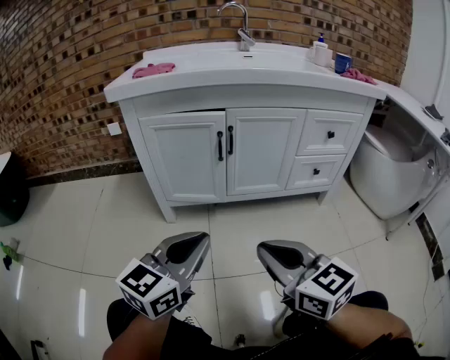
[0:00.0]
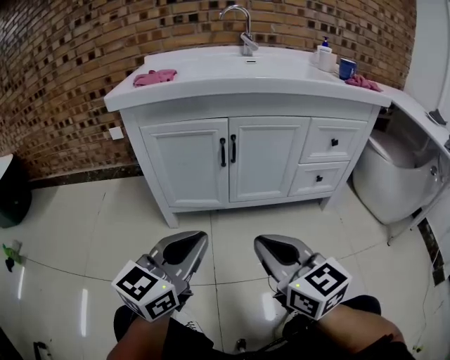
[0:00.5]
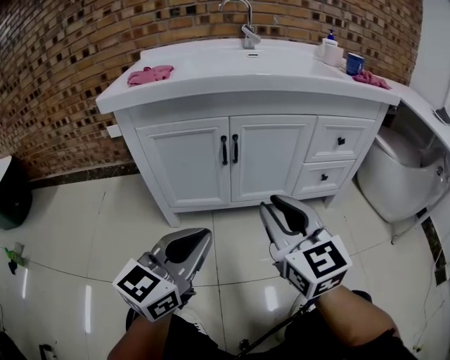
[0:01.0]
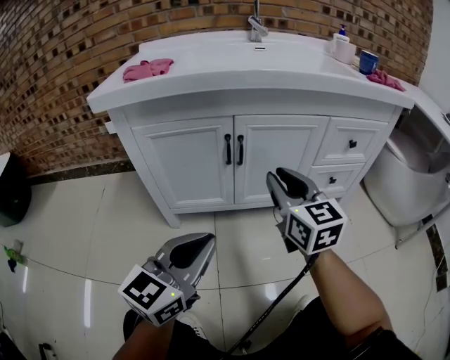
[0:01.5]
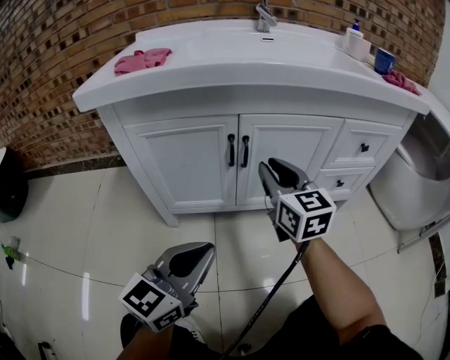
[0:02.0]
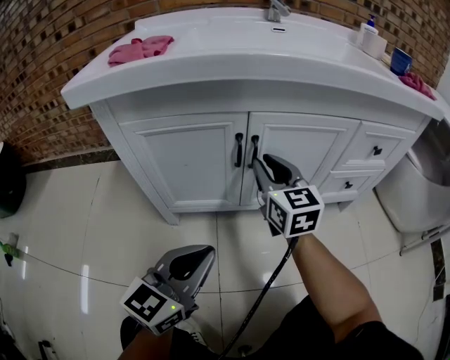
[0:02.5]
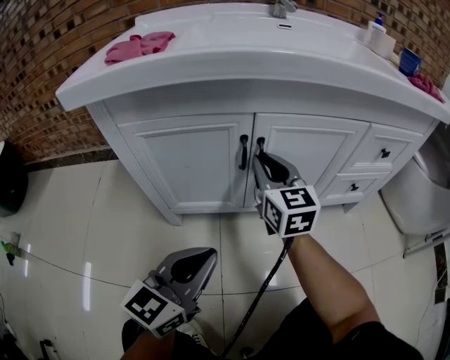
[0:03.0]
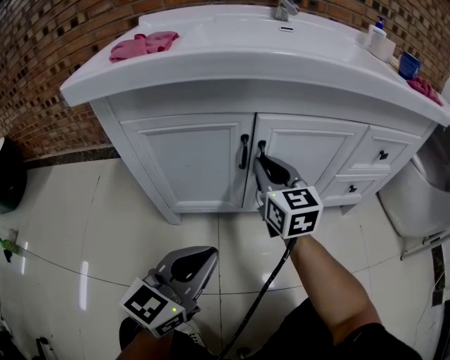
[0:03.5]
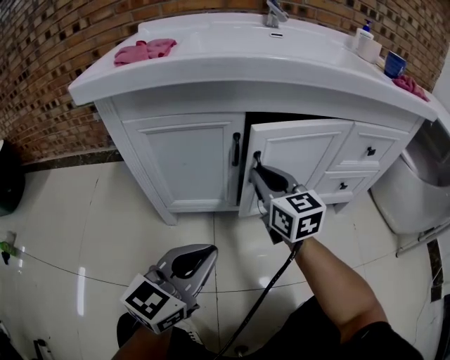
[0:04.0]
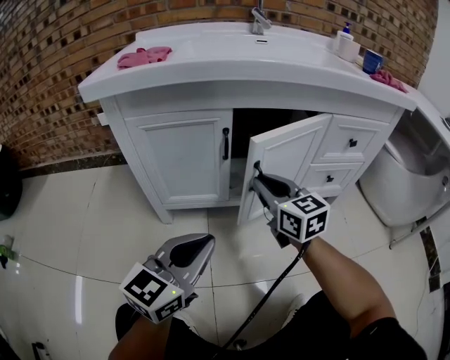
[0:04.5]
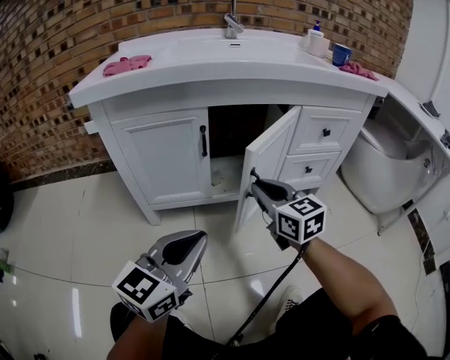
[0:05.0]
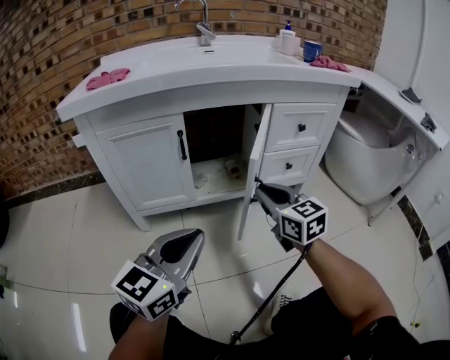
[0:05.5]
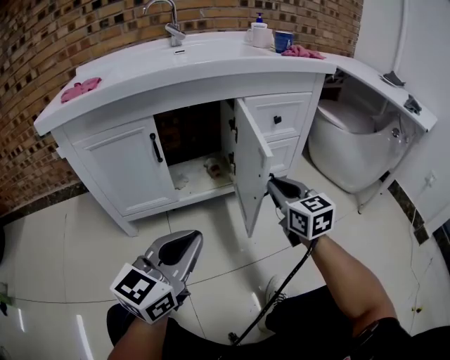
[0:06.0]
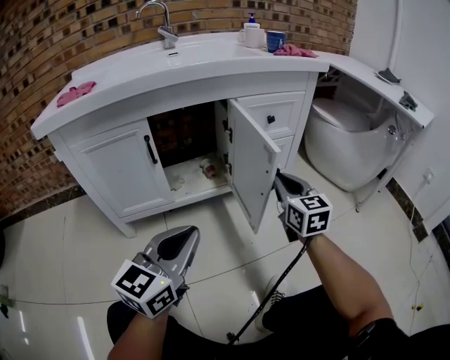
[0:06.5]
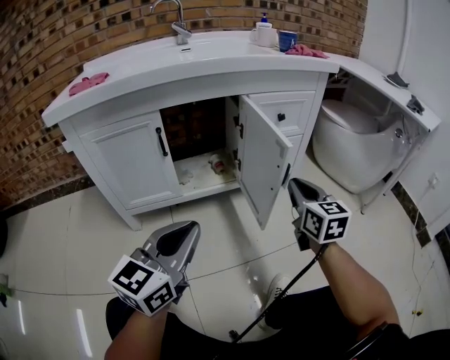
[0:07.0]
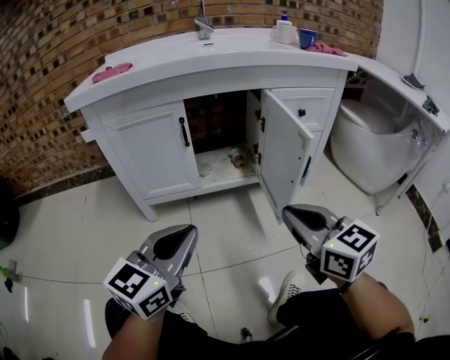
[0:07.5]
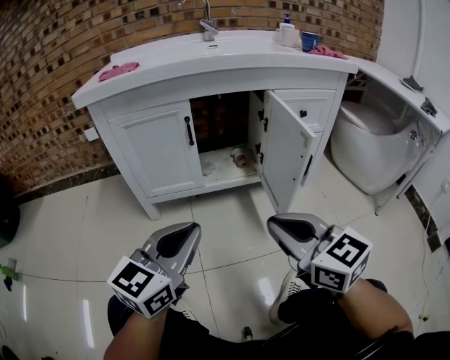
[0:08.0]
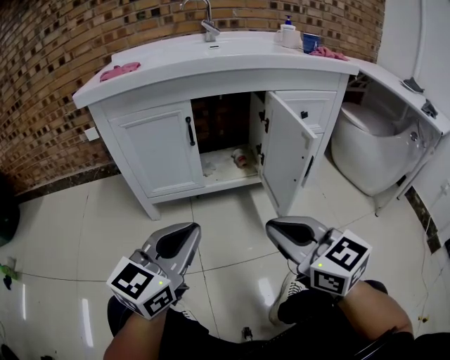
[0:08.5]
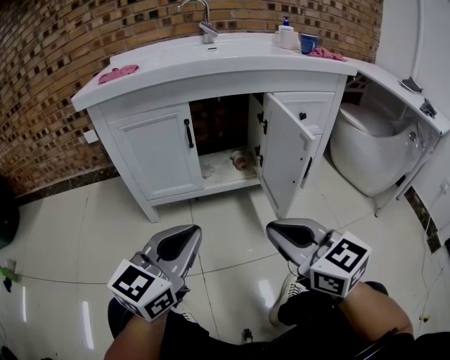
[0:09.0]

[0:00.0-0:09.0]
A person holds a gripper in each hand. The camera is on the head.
0:00.0 to 0:02.0: The left gripper shifts roughly 10 cm forward. Meanwhile the right gripper is displaced forward by roughly 35 cm, and opens.
0:02.0 to 0:04.5: The right gripper moves about 5 cm.
0:04.5 to 0:07.0: The left gripper moves to the right, roughly 10 cm; the right gripper travels to the right by about 30 cm, and rotates about 30 degrees.
0:07.0 to 0:09.0: The right gripper shifts some 25 cm to the left and backward, and changes its angle by approximately 30 degrees. The left gripper travels to the left by about 5 cm.

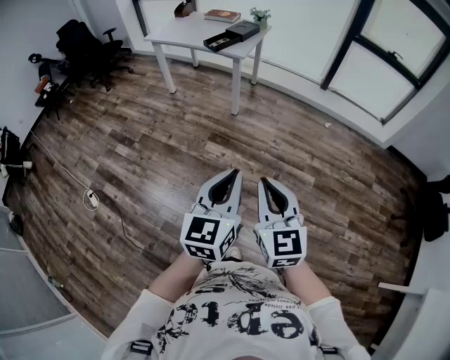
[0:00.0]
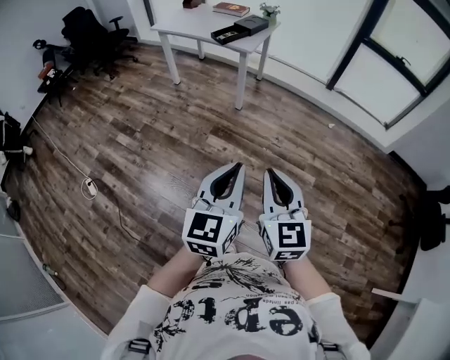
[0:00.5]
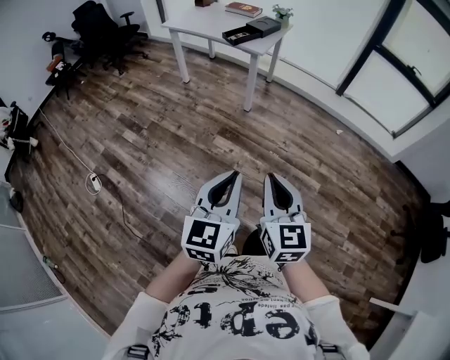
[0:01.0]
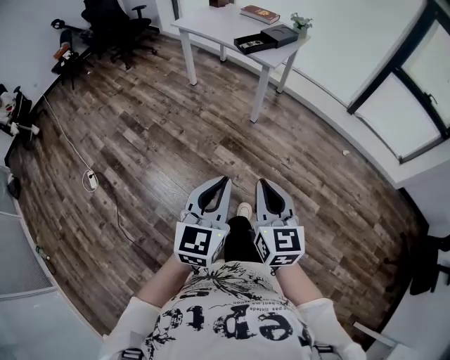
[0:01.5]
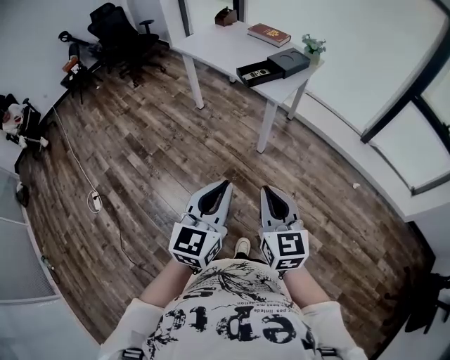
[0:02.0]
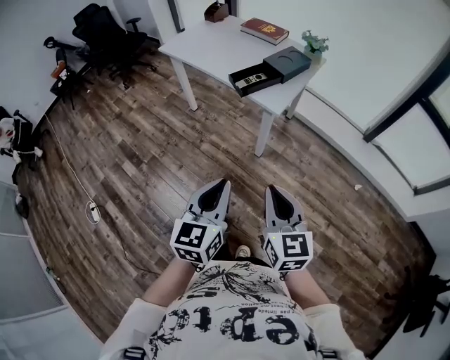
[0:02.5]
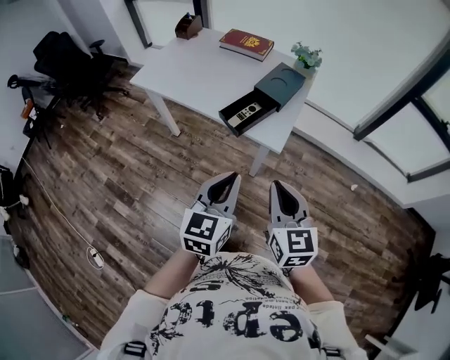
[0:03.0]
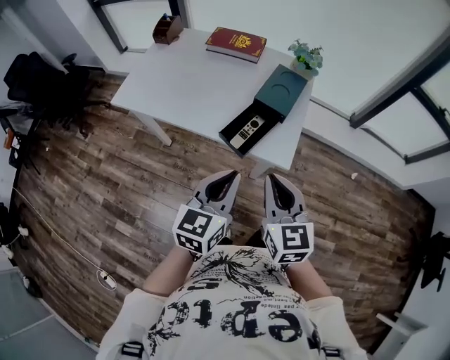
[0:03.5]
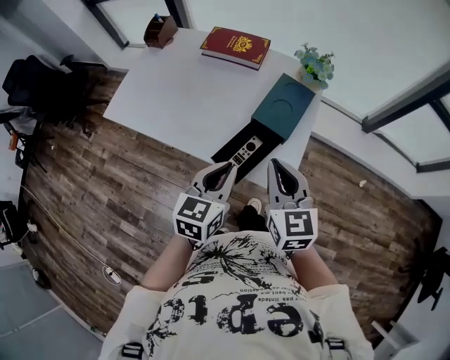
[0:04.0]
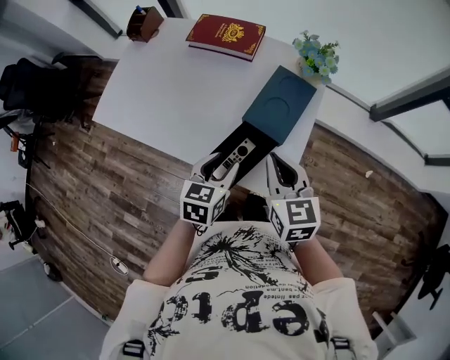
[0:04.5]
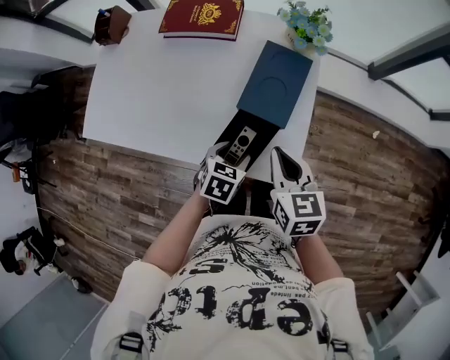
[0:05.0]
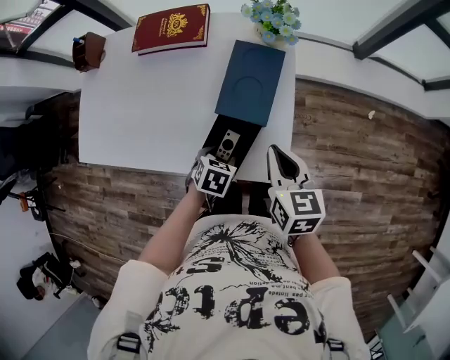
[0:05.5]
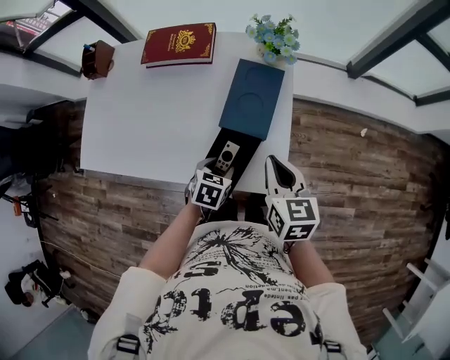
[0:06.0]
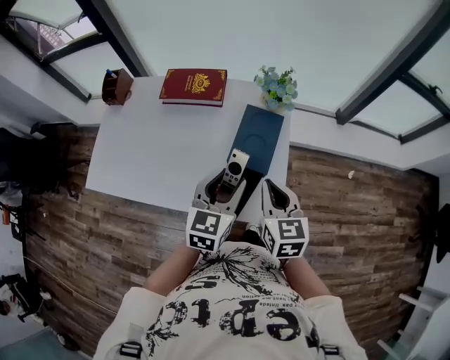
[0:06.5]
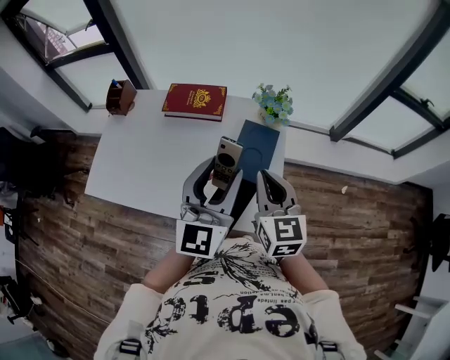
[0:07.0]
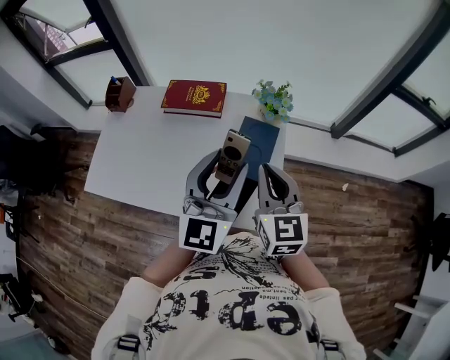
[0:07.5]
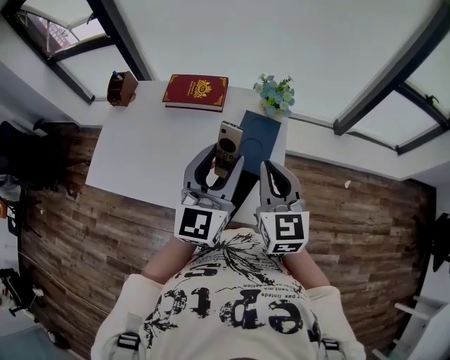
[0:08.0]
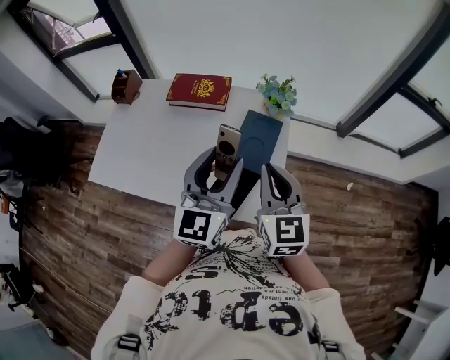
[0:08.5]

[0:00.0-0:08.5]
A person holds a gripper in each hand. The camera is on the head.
0:00.0 to 0:02.0: The grippers both shift forward by about 40 cm.
0:02.0 to 0:04.0: The two grippers travel together, forward, roughly 60 cm. The left gripper turns by some 30 degrees.
0:04.0 to 0:06.5: The left gripper shifts approximately 10 cm forward, moves about 25 cm downward and comes back, and opens its fingers; the right gripper heads forward, covering roughly 10 cm, and reaches approximately 10 cm downward, then returns.
0:06.5 to 0:08.5: The two grippers go about 10 cm upward. The left gripper swivels about 30 degrees.

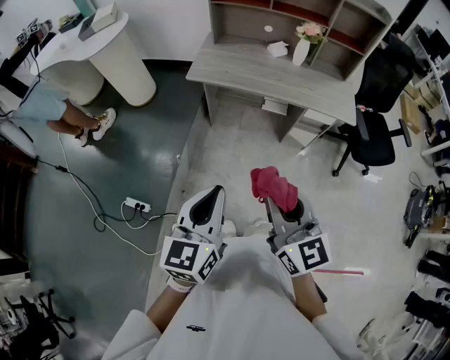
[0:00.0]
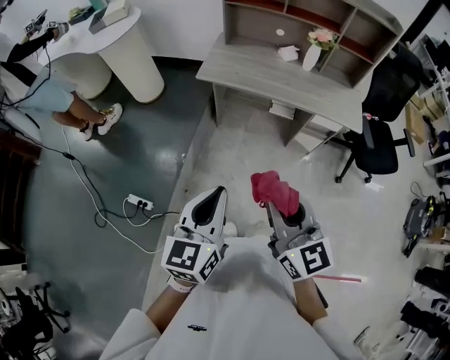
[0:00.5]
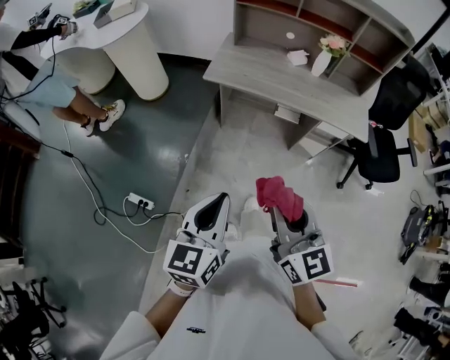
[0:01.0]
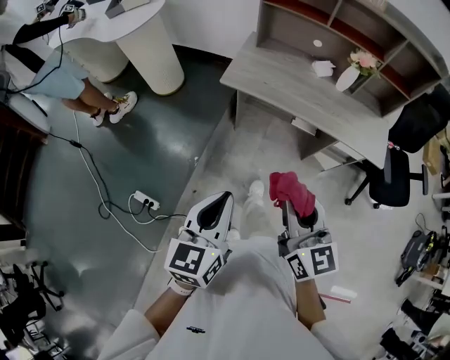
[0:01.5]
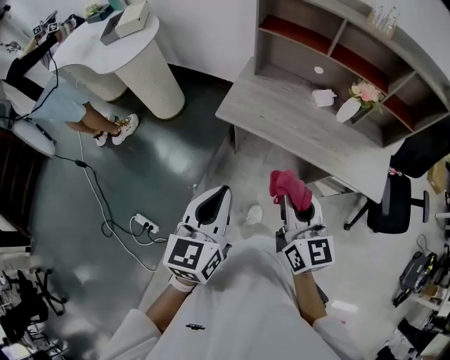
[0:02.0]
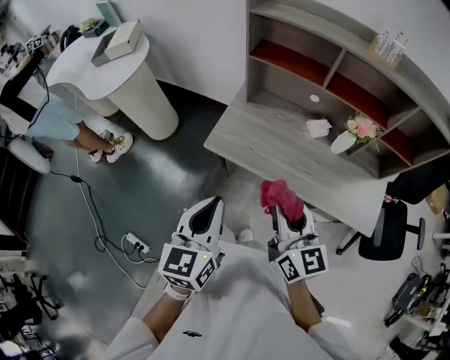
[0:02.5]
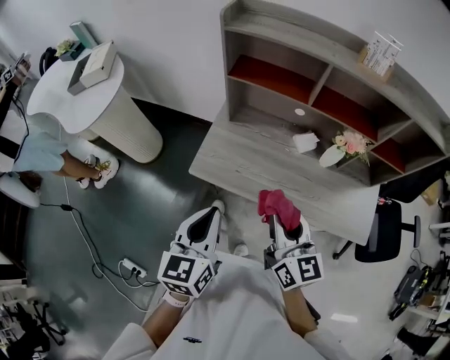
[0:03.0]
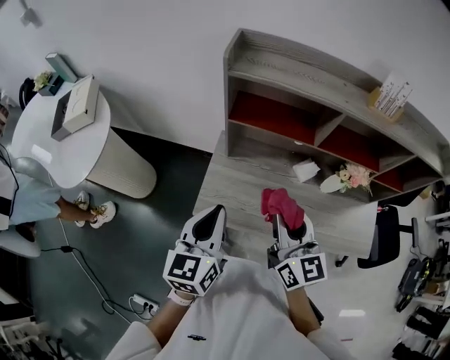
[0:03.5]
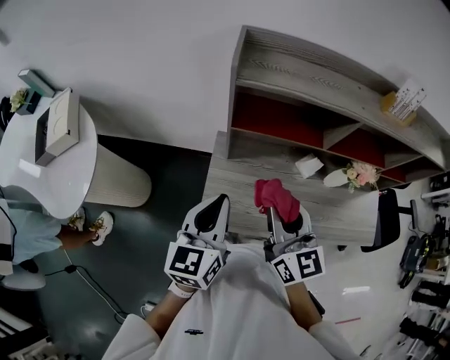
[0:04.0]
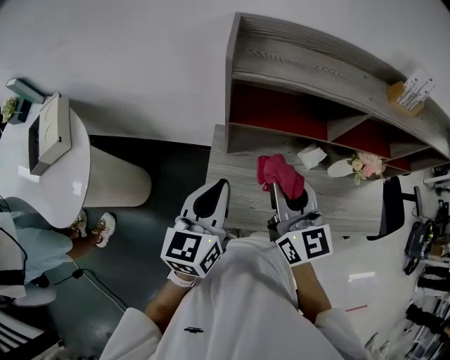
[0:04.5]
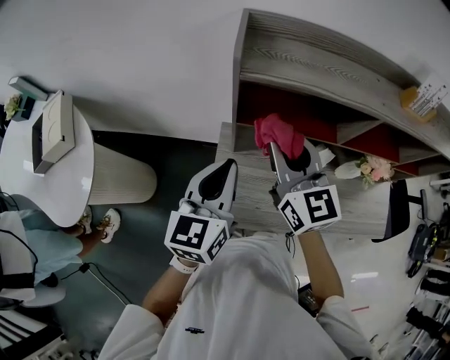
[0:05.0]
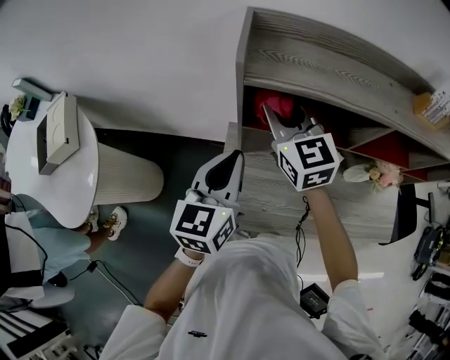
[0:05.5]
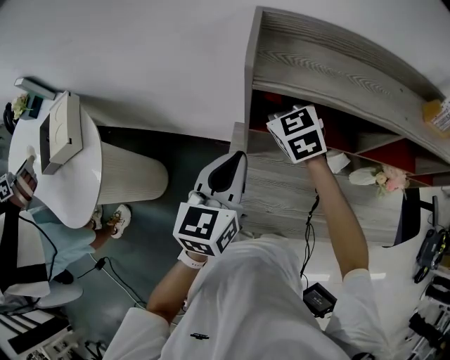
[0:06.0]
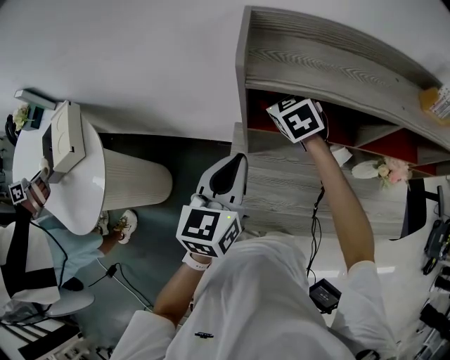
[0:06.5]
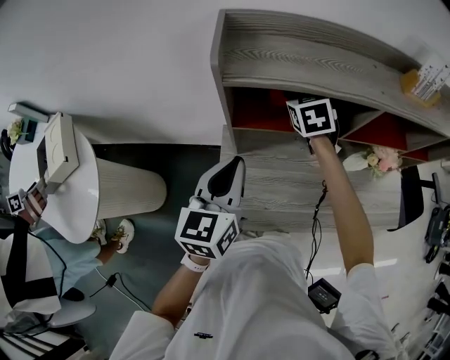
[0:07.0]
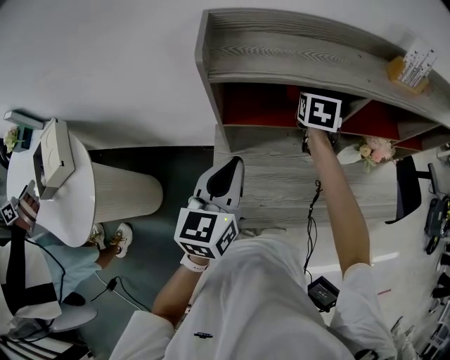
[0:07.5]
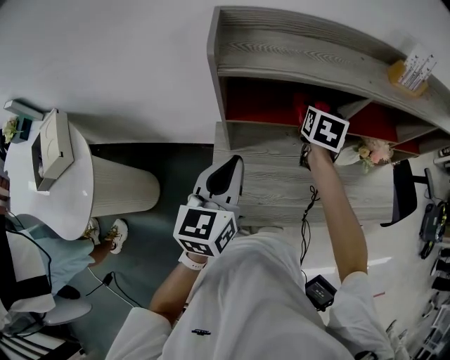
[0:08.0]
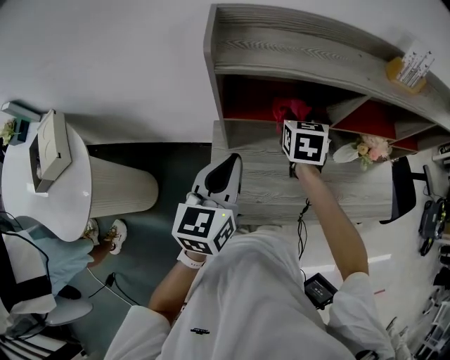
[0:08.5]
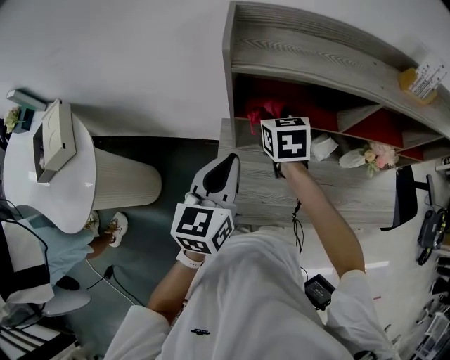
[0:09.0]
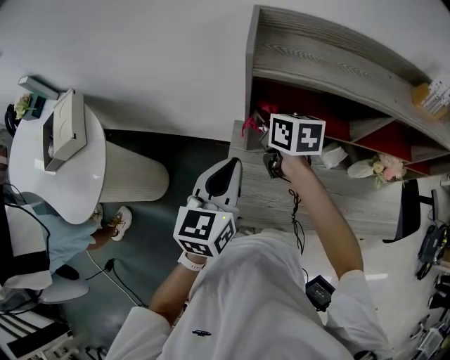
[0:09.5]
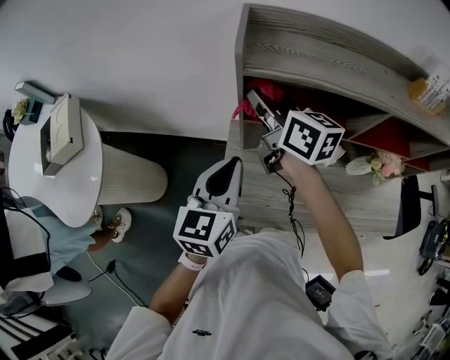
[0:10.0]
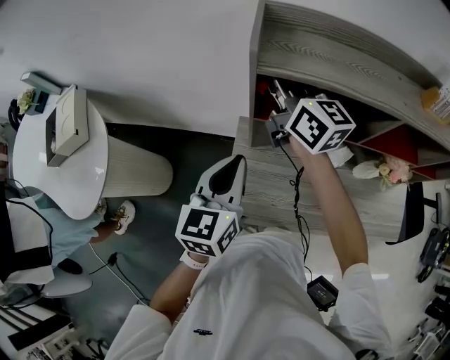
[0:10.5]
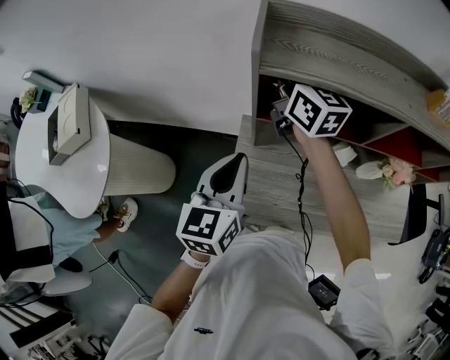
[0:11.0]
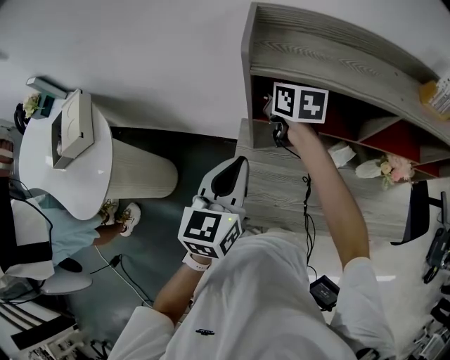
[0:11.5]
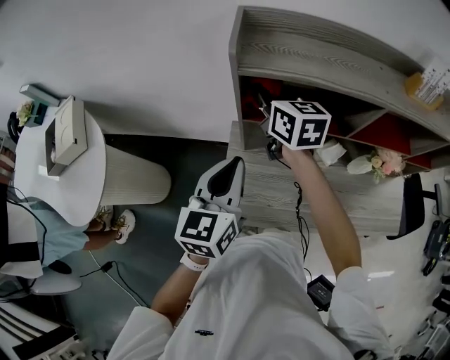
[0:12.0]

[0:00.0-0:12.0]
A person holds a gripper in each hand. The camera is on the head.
0:00.0 to 0:02.0: The two grippers go roughly 30 cm forward.
0:02.0 to 0:04.0: The pair of grippers is taken forward, roughly 40 cm.
0:04.0 to 0:06.0: The right gripper heads forward, covering roughly 30 cm, and swivels about 40 degrees; the left gripper shifts some 15 cm forward.
0:06.0 to 0:08.0: The left gripper shifts by roughly 5 cm; the right gripper ends up approximately 25 cm from where it was, and turns by some 60 degrees.
0:08.0 to 0:10.0: The right gripper ends up approximately 25 cm from where it was, and points its fingers about 40 degrees further upward.
0:10.0 to 0:12.0: The right gripper moves up and down over roughly 10 cm, changing direction 2 times.
